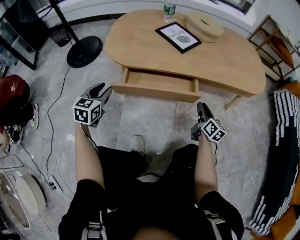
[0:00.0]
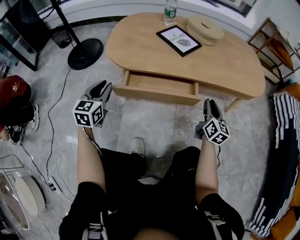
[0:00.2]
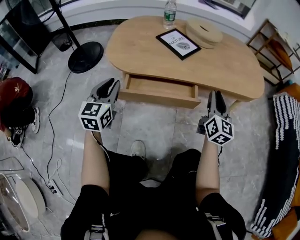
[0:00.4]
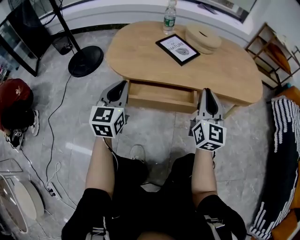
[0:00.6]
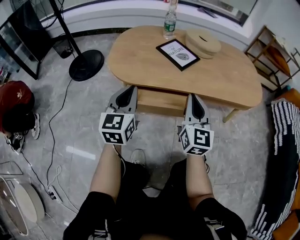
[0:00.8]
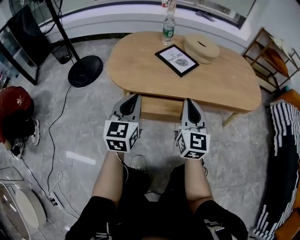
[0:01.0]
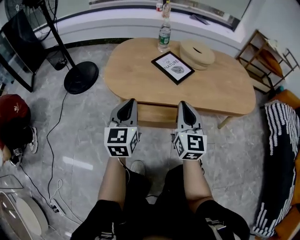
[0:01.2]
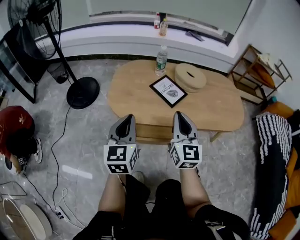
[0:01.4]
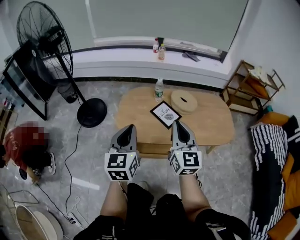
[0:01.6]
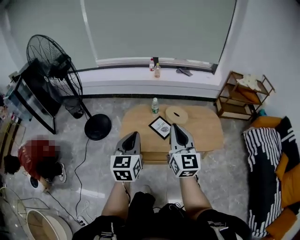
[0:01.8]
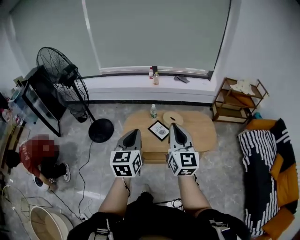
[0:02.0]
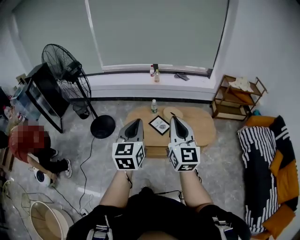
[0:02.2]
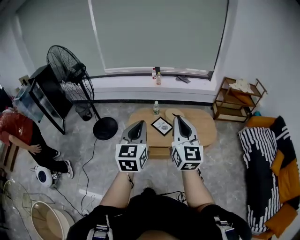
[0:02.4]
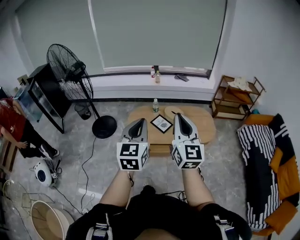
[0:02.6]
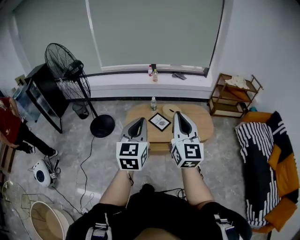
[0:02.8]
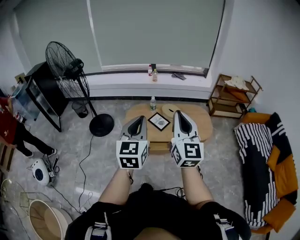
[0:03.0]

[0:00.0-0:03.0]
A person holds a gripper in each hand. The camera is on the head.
0:00.0 to 0:01.6: Both grippers move upward, some 50 cm. The right gripper swivels roughly 40 degrees, and closes, while the left gripper changes its angle by about 20 degrees, and closes.
0:01.6 to 0:03.0: Both grippers move upward and backward, roughly 50 cm.

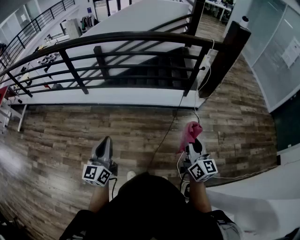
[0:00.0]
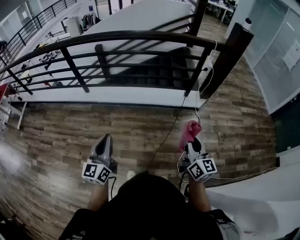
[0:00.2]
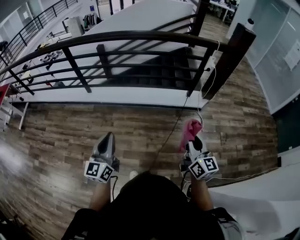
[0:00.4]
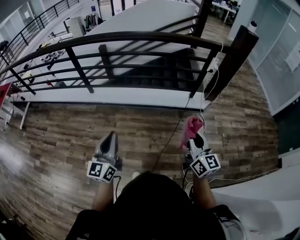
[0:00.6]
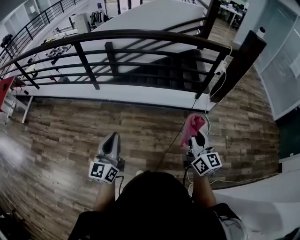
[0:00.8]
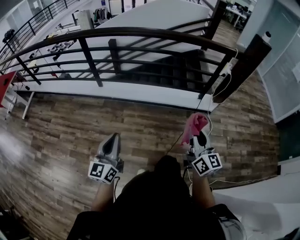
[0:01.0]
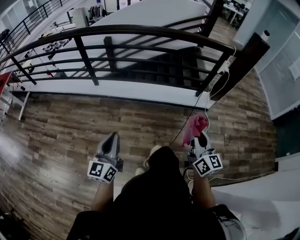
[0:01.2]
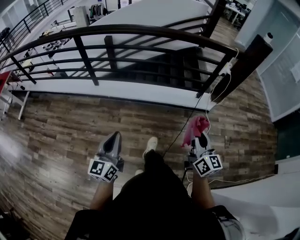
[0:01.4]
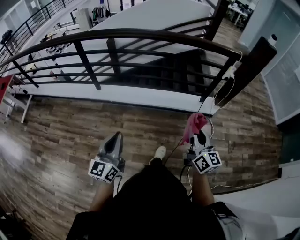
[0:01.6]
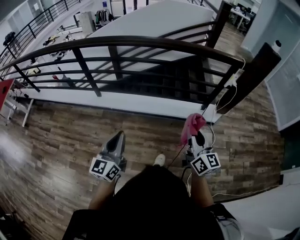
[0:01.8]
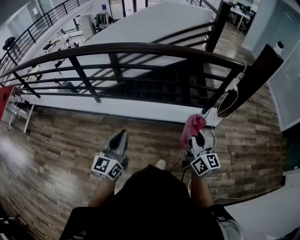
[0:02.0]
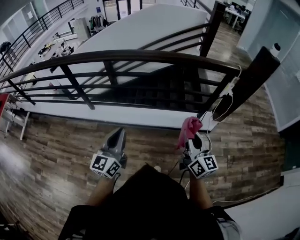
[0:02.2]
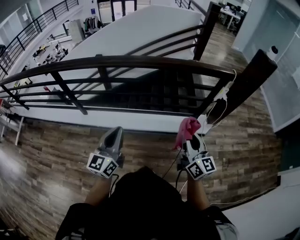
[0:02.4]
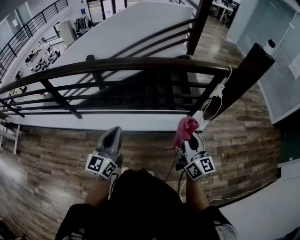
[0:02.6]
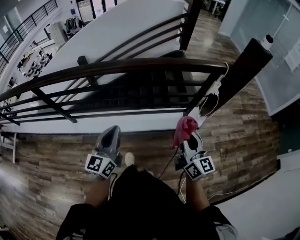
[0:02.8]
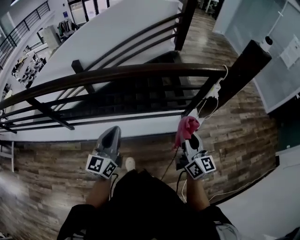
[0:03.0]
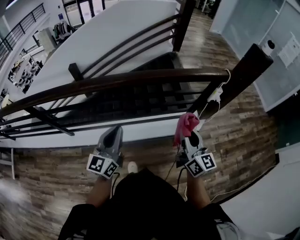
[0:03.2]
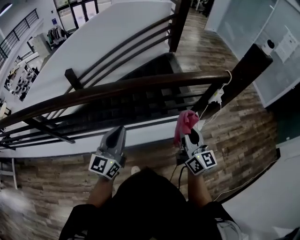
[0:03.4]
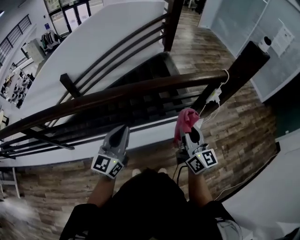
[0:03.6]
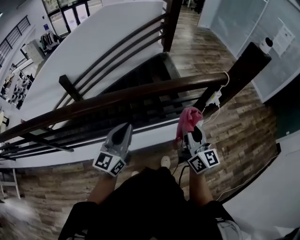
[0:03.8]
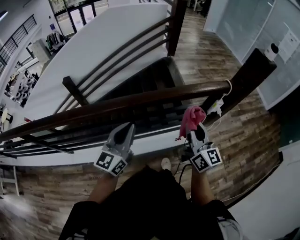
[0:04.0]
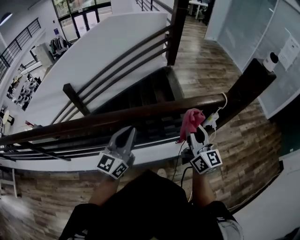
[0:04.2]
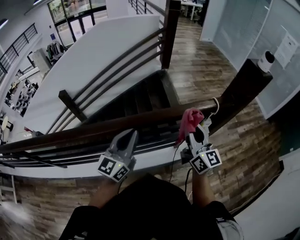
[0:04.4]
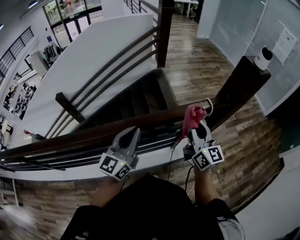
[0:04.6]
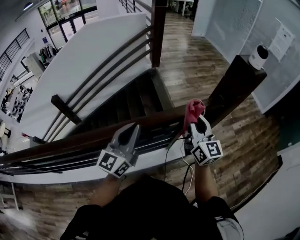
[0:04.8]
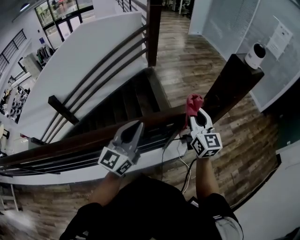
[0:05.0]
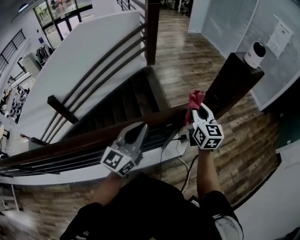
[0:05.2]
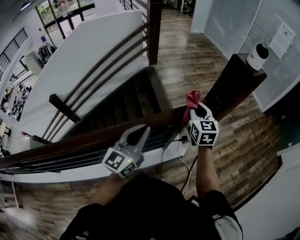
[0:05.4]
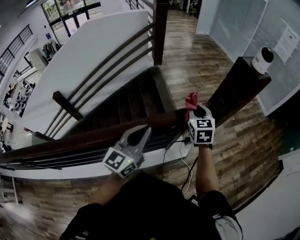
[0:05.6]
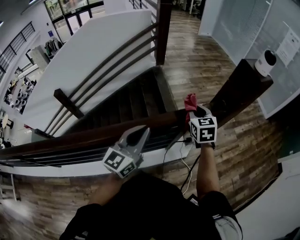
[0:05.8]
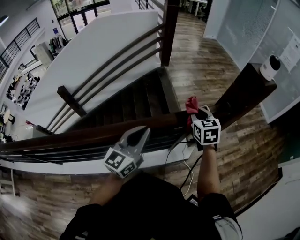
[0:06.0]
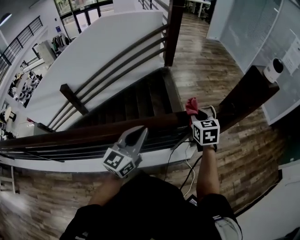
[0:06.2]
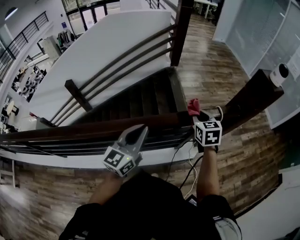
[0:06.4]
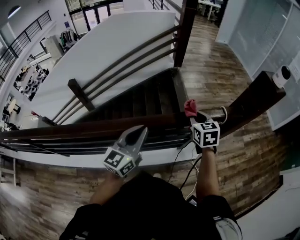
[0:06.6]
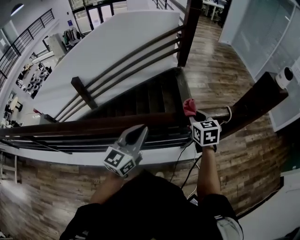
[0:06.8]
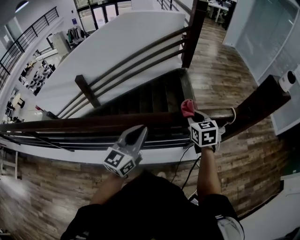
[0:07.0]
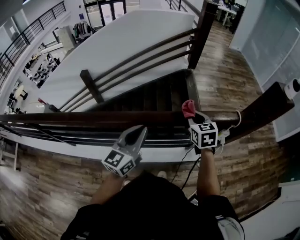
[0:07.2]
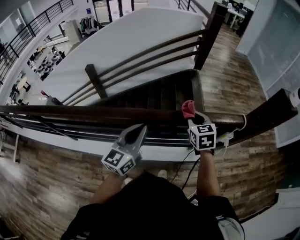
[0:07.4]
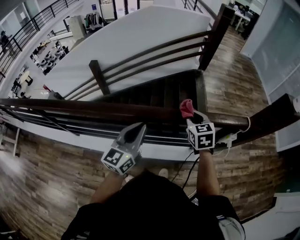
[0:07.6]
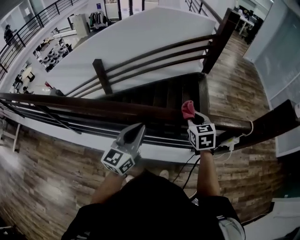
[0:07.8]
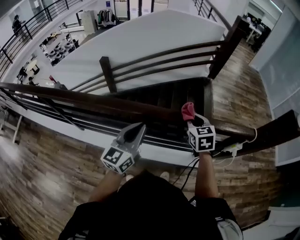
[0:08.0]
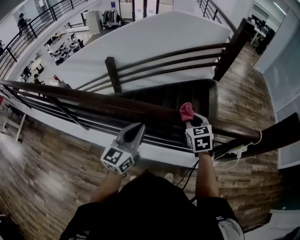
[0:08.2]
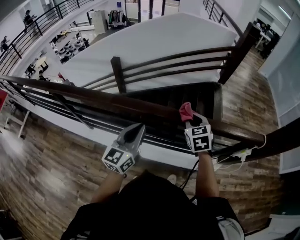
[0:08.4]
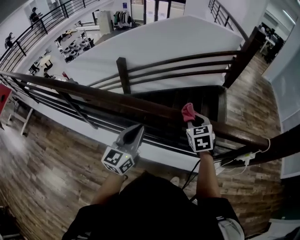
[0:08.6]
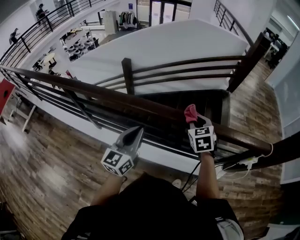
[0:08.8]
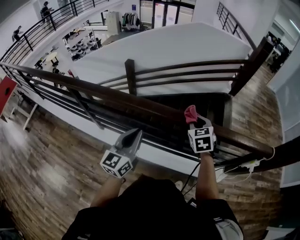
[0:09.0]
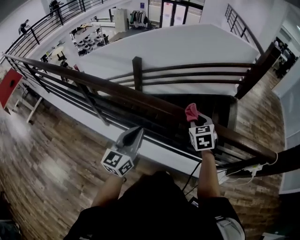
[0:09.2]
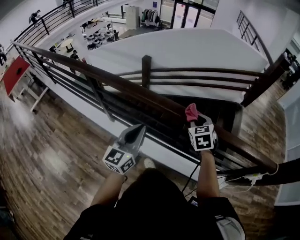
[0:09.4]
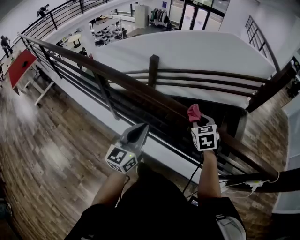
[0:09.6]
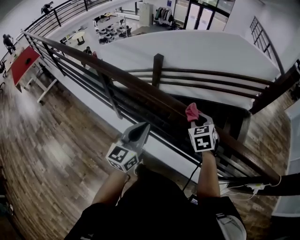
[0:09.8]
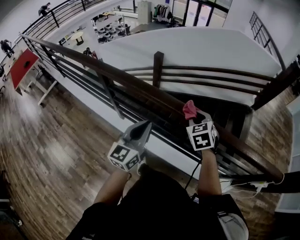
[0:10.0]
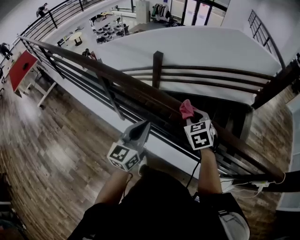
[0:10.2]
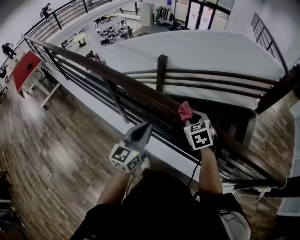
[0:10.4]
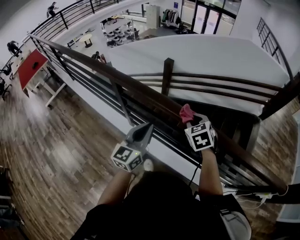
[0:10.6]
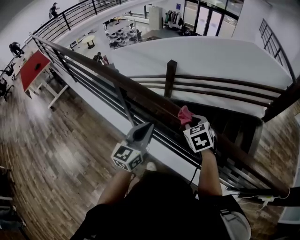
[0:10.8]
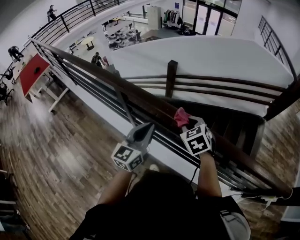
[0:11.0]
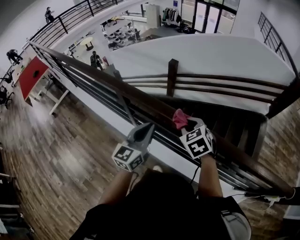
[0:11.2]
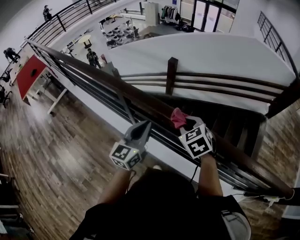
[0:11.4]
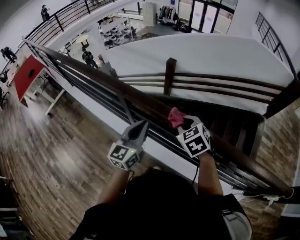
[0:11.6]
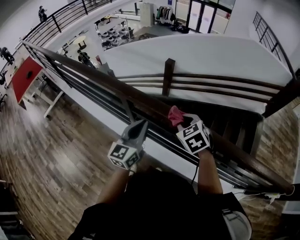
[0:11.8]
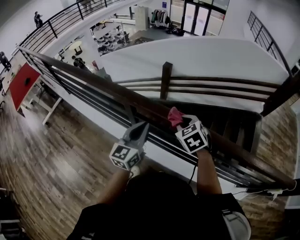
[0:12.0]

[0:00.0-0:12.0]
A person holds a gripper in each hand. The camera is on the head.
0:00.0 to 0:01.6: The right gripper is displaced forward and to the left by some 15 cm. Meanwhile the left gripper travels to the left and forward by about 10 cm.
0:01.6 to 0:03.0: Both grippers travel together forward, some 30 cm.
0:03.0 to 0:04.4: The left gripper travels forward and to the right by roughly 25 cm; the right gripper moves forward, roughly 25 cm.
0:04.4 to 0:06.0: The left gripper moves to the right and forward, some 15 cm; the right gripper is displaced forward, downward and to the right by about 20 cm, and tips its fingers downward by some 40 degrees.
0:06.0 to 0:07.6: The right gripper shifts some 25 cm to the left. The left gripper travels to the left and backward by some 20 cm, and turns by some 20 degrees.
0:07.6 to 0:09.0: Both grippers move to the left, some 20 cm.
0:09.0 to 0:10.4: The left gripper heads to the left, covering approximately 15 cm, while the right gripper heads to the left, covering some 25 cm, and swivels about 20 degrees.
0:10.4 to 0:12.0: Both grippers travel together to the left and forward, about 20 cm.

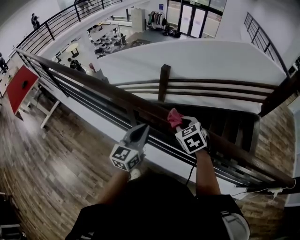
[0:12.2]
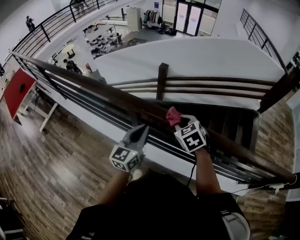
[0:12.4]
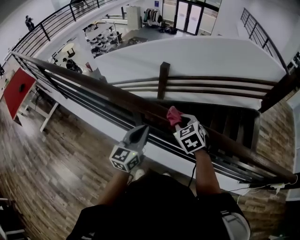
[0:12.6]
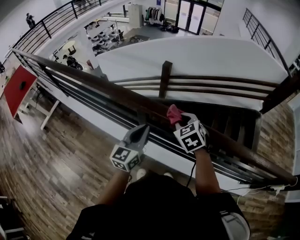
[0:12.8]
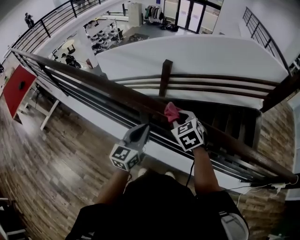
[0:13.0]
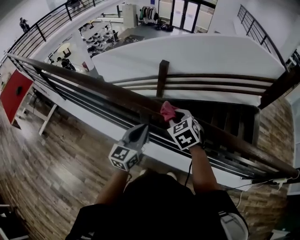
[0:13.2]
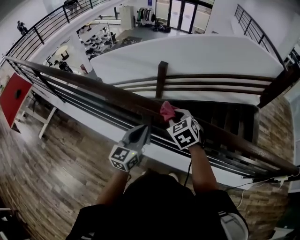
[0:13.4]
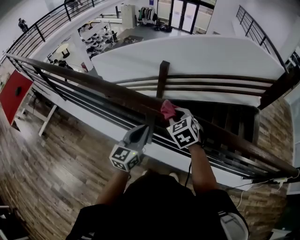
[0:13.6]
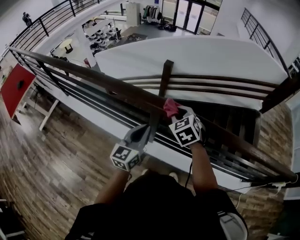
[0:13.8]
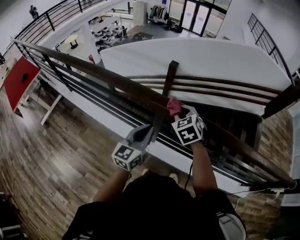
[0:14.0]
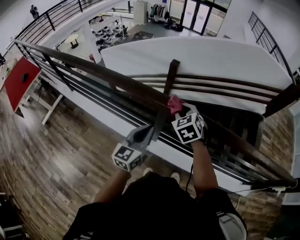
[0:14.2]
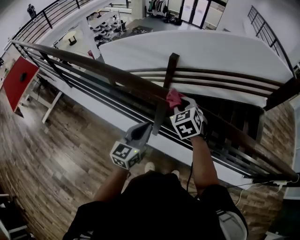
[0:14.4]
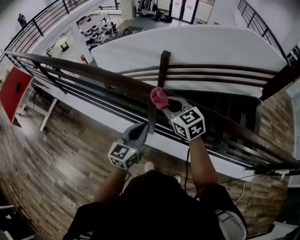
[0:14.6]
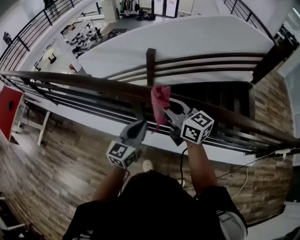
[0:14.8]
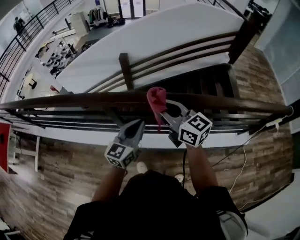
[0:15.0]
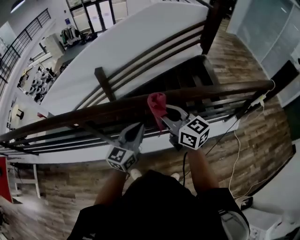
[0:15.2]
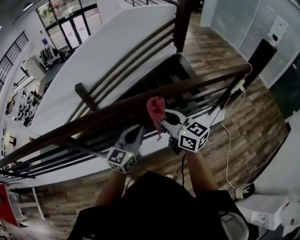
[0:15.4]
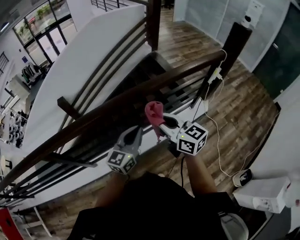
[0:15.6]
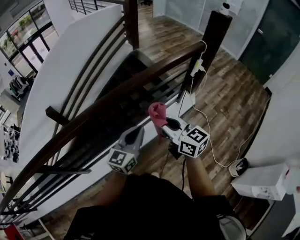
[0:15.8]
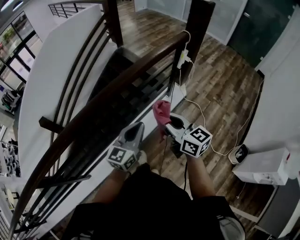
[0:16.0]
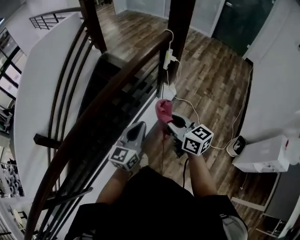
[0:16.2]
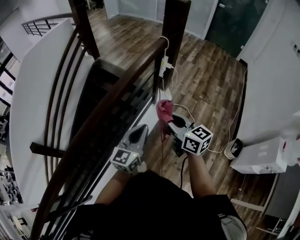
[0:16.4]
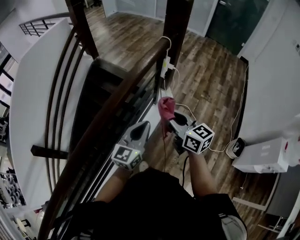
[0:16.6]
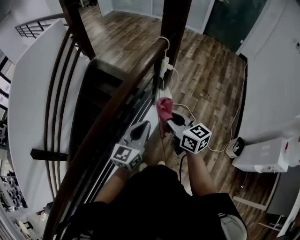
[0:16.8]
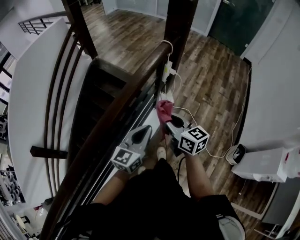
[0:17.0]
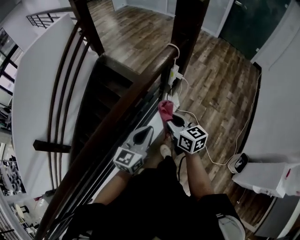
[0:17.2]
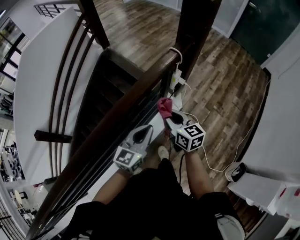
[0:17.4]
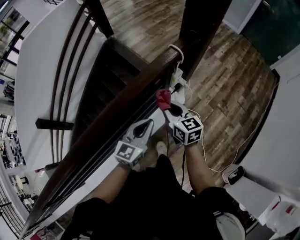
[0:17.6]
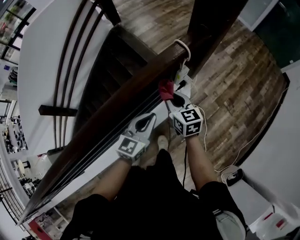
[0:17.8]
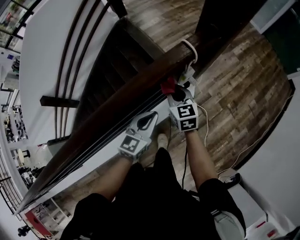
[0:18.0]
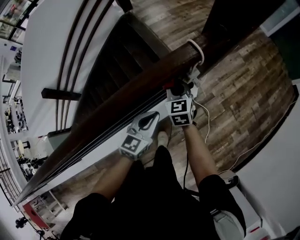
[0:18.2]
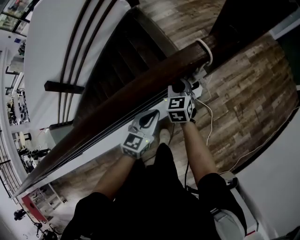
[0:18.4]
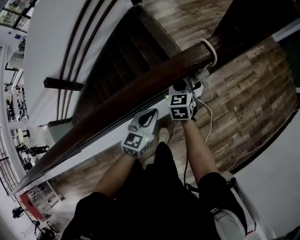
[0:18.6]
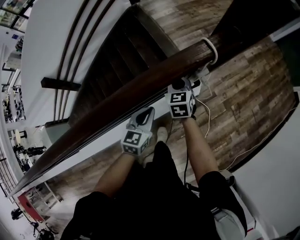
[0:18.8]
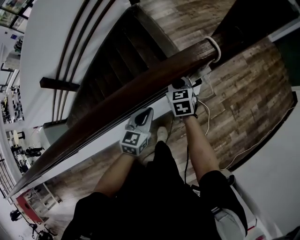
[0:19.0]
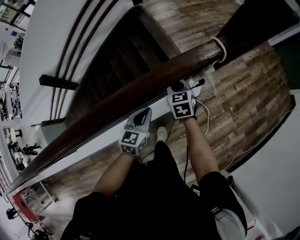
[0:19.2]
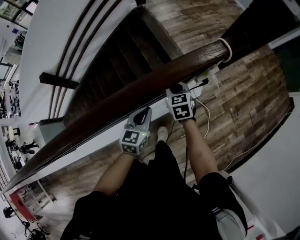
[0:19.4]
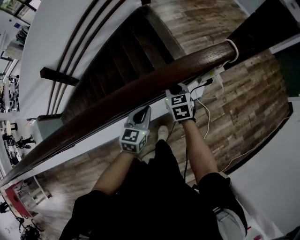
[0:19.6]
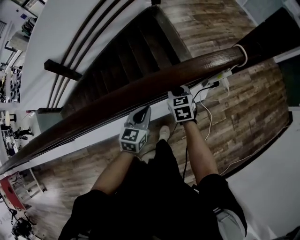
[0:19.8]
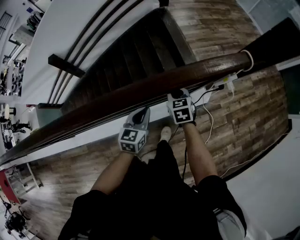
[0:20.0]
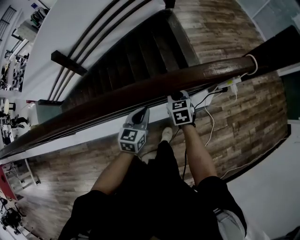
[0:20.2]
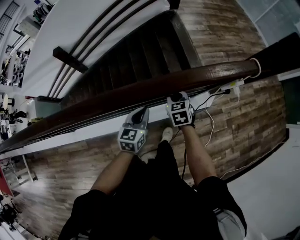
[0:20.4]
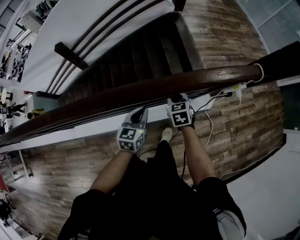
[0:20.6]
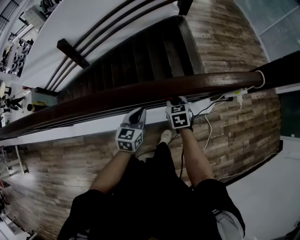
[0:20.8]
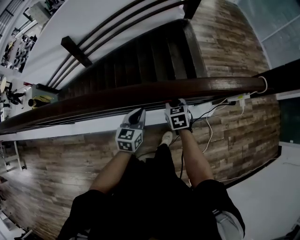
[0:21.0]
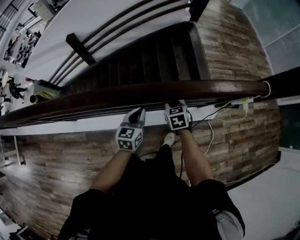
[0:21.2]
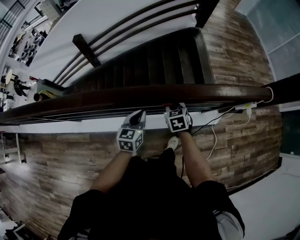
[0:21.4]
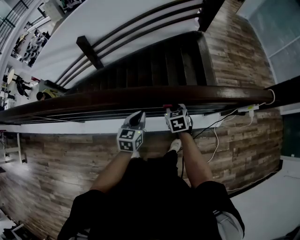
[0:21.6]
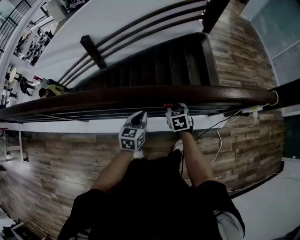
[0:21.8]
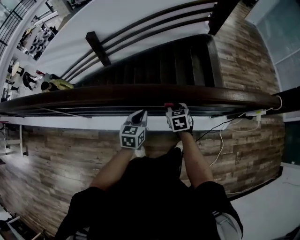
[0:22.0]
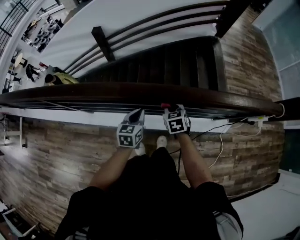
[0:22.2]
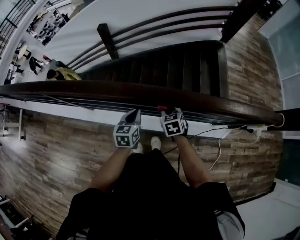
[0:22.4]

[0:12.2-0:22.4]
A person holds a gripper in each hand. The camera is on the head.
0:12.2 to 0:13.6: The grippers both shift to the left by approximately 10 cm.
0:13.6 to 0:15.2: The right gripper changes place by roughly 30 cm, and tips its fingers upward by about 40 degrees. Meanwhile the left gripper changes place by roughly 25 cm, and changes its angle by approximately 30 degrees.
0:15.2 to 0:16.6: The pair of grippers is taken some 50 cm. The right gripper rotates some 60 degrees; the left gripper turns by about 50 degrees.
0:16.6 to 0:18.0: The right gripper moves forward and downward, approximately 35 cm, and turns by approximately 30 degrees. The left gripper shifts roughly 25 cm forward, downward and to the right, and rotates about 20 degrees.
0:18.0 to 0:19.4: Both grippers move to the left and downward, approximately 10 cm. The left gripper turns by about 20 degrees.
0:19.4 to 0:21.0: The left gripper shifts approximately 20 cm to the left, and turns by approximately 20 degrees. The right gripper heads to the left and backward, covering some 20 cm.
0:21.0 to 0:22.4: Both grippers travel together to the left, some 20 cm. The left gripper rotates some 20 degrees.
